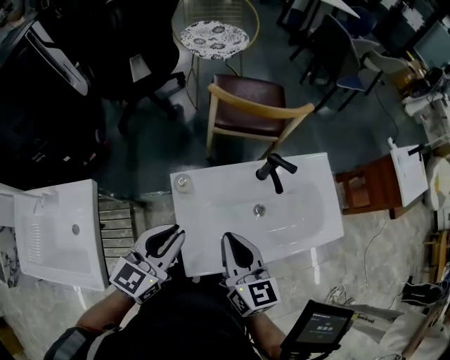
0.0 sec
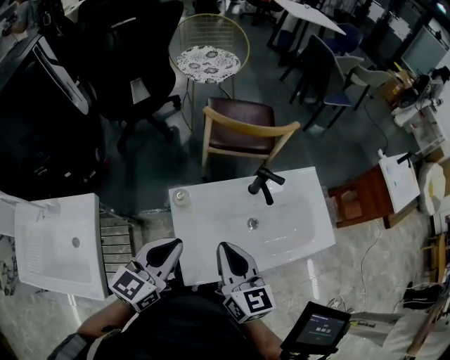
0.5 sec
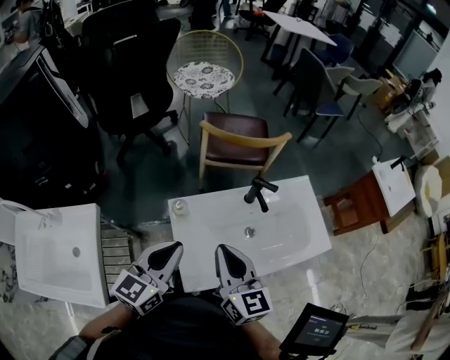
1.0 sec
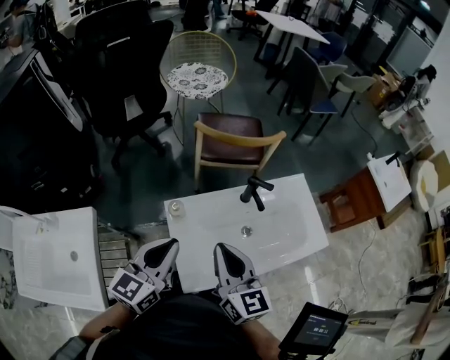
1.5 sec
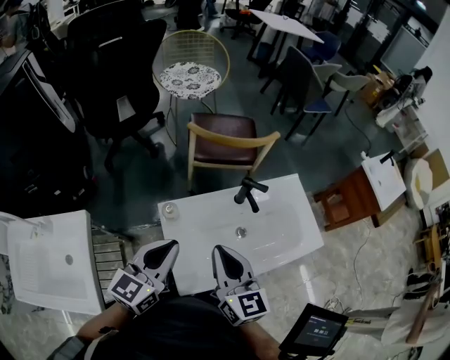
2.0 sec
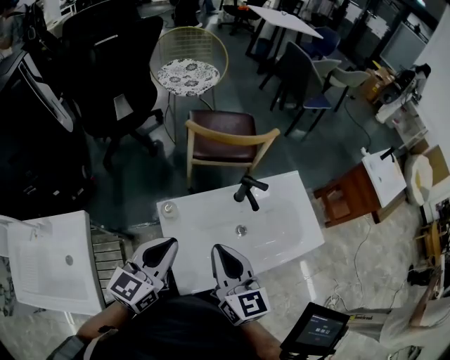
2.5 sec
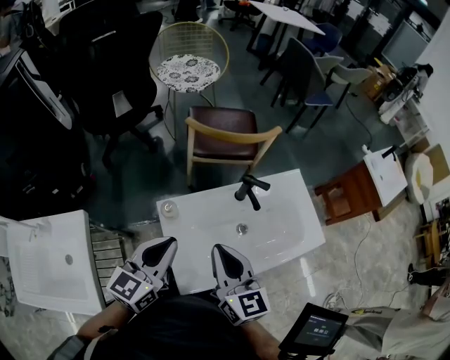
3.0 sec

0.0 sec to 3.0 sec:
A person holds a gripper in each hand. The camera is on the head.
0.0 sec to 1.5 sec: The two grippers go approximately 5 cm upward.
1.5 sec to 3.0 sec: The grippers stay close to where they were, moving slightly.

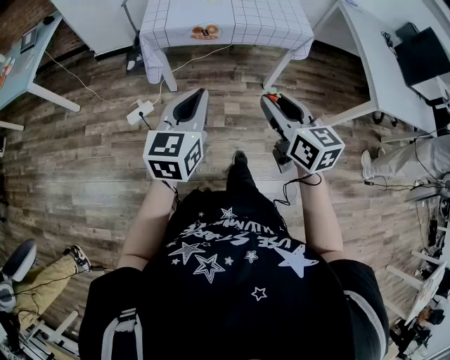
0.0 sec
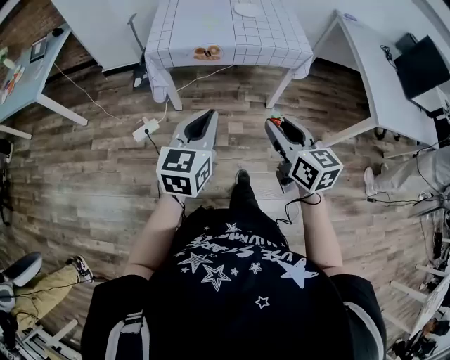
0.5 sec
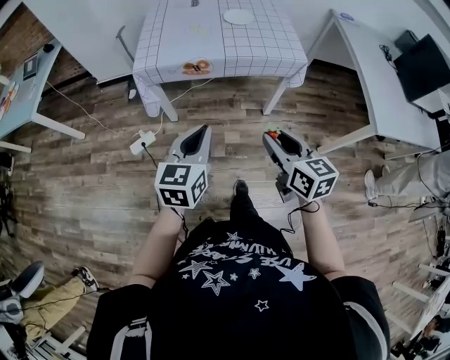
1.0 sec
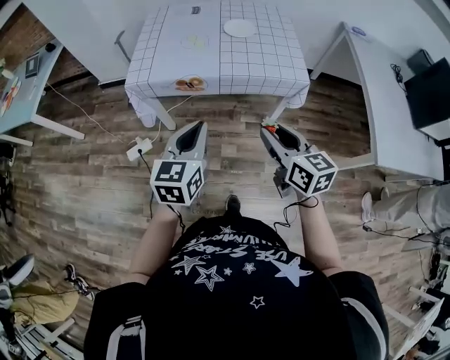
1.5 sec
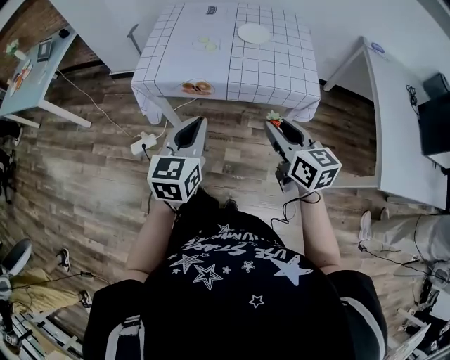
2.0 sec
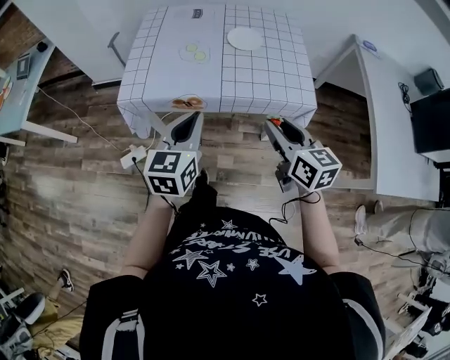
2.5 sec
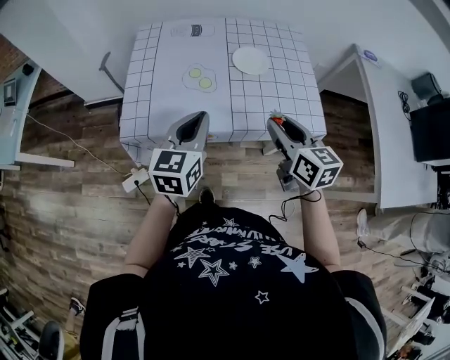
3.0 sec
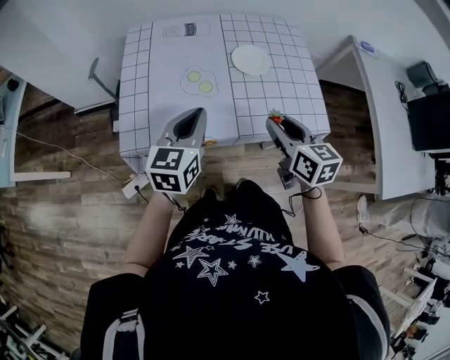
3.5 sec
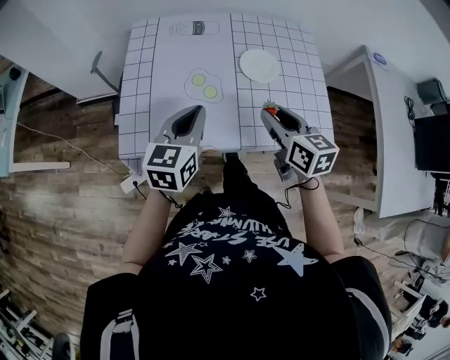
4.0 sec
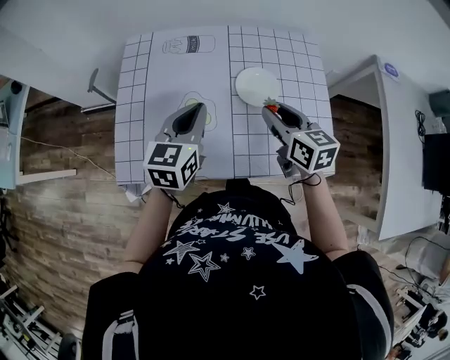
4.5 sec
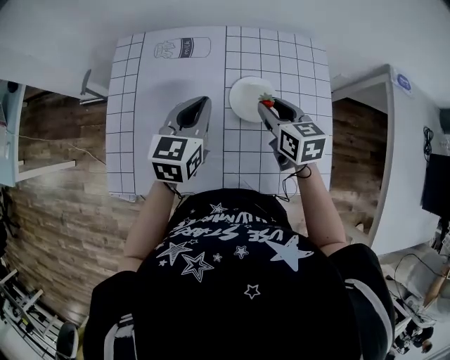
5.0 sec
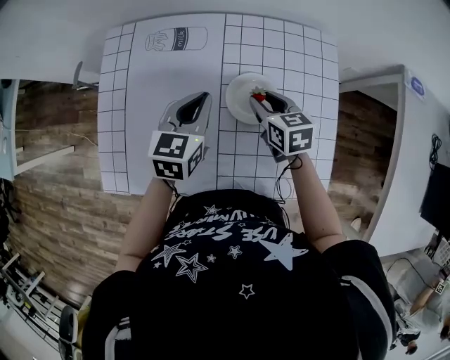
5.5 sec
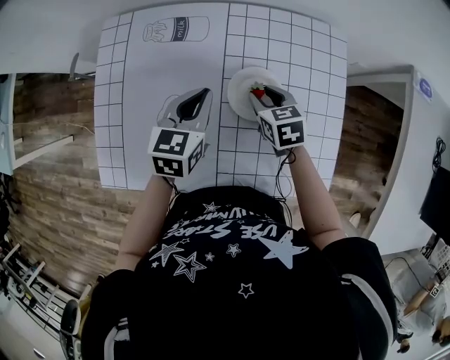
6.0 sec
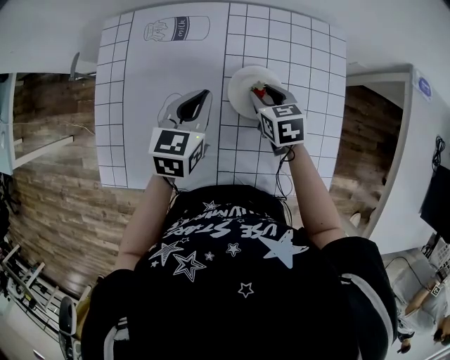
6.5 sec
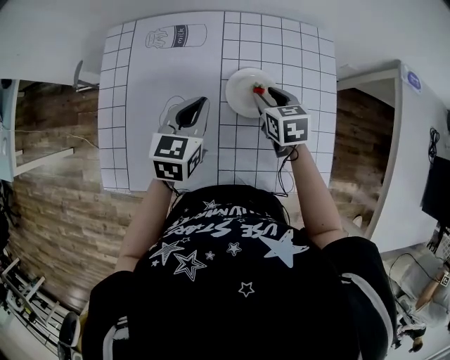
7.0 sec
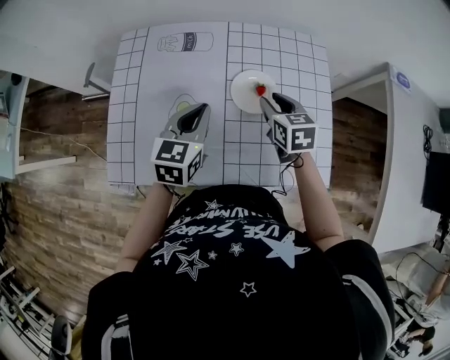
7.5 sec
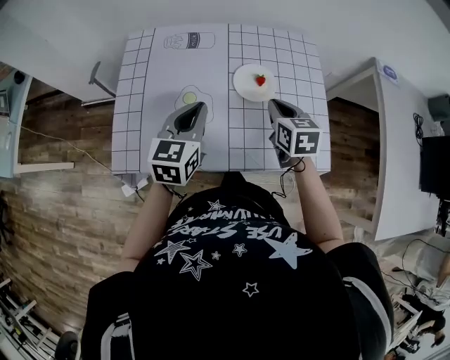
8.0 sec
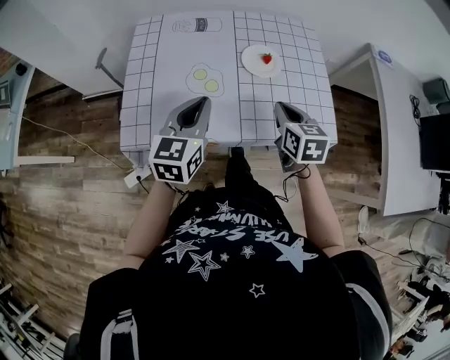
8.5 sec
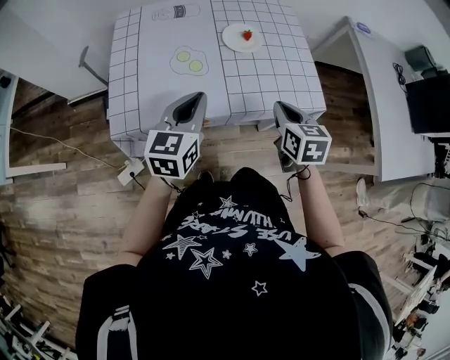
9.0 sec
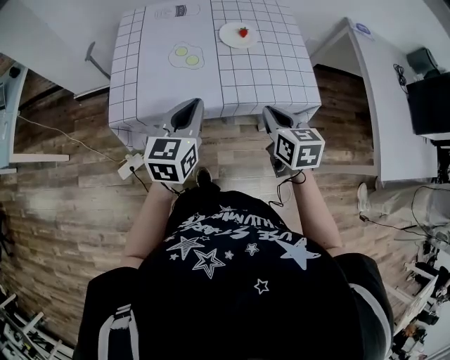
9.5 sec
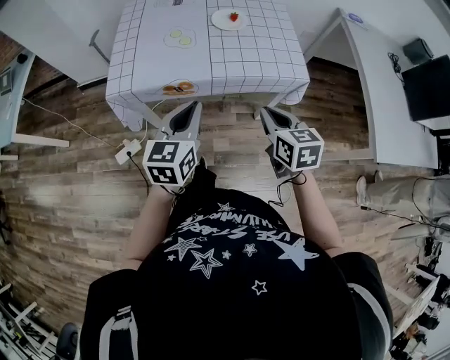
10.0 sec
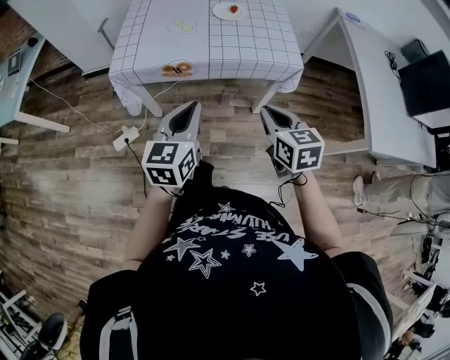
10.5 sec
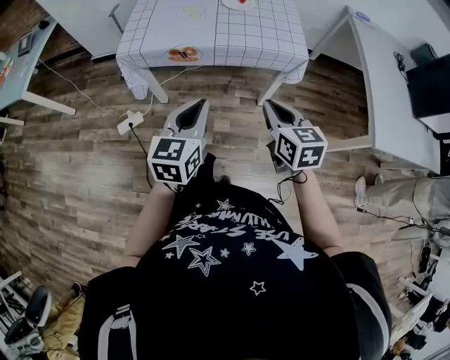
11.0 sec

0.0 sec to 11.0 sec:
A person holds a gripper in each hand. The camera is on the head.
0.0 sec to 2.0 sec: The grippers both shift forward and to the right by roughly 25 cm.
2.0 sec to 3.5 sec: The grippers both shift forward by some 25 cm.
3.5 sec to 5.5 sec: The right gripper goes about 35 cm forward and downward, and rotates approximately 20 degrees, while the left gripper moves forward, roughly 25 cm.
5.5 sec to 7.5 sec: The right gripper changes place by some 5 cm; the left gripper travels backward by about 5 cm.
7.5 sec to 9.0 sec: Both grippers travel together backward, about 25 cm. The right gripper closes.
9.0 sec to 11.0 sec: Both grippers move backward, approximately 30 cm.

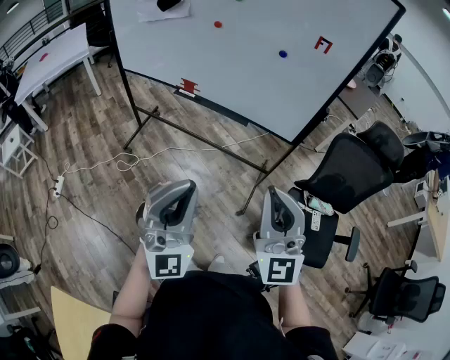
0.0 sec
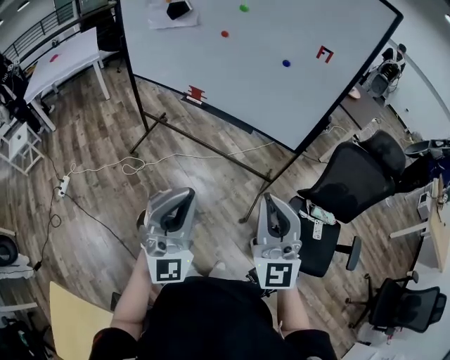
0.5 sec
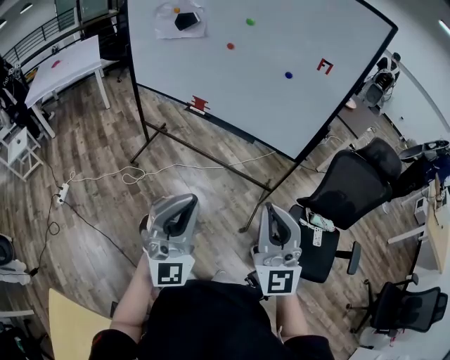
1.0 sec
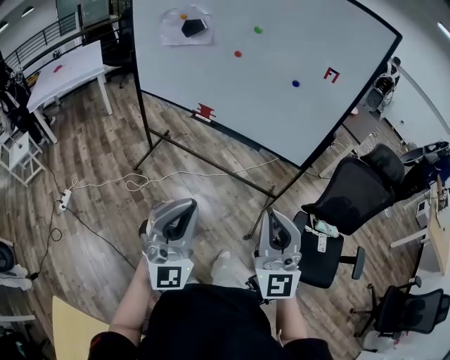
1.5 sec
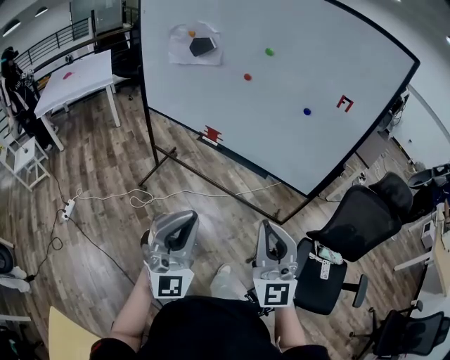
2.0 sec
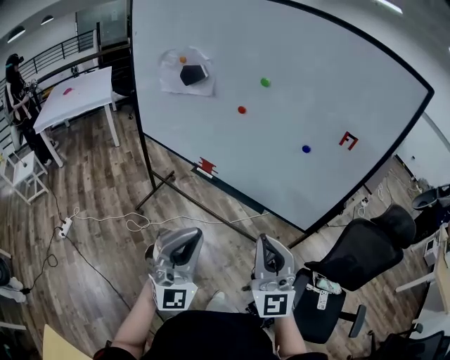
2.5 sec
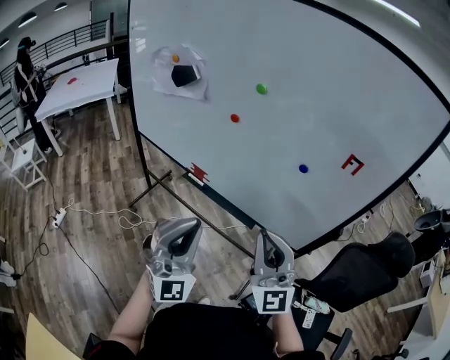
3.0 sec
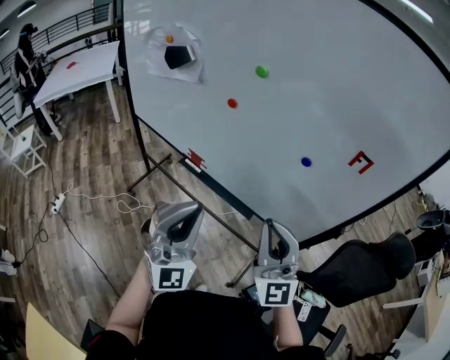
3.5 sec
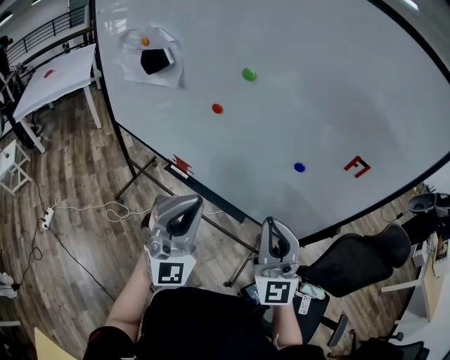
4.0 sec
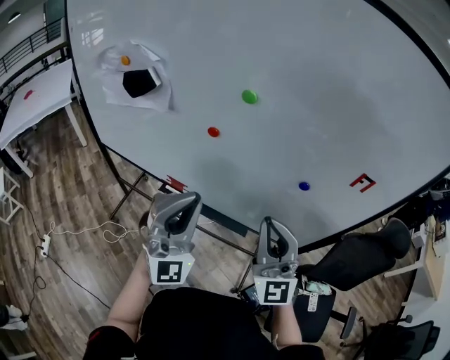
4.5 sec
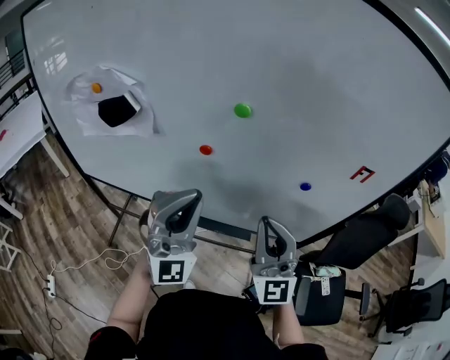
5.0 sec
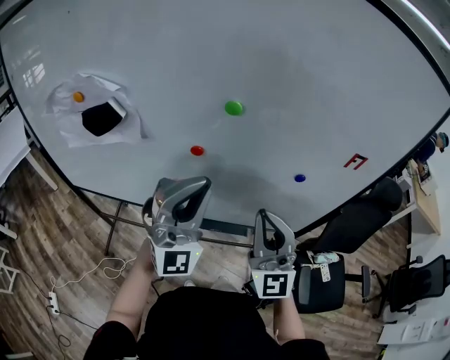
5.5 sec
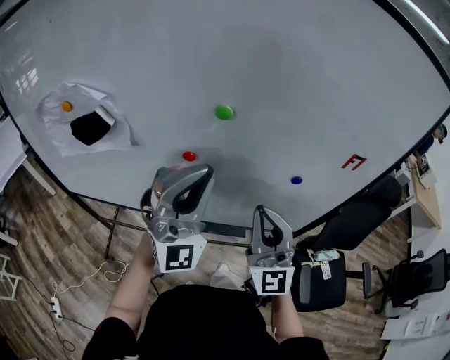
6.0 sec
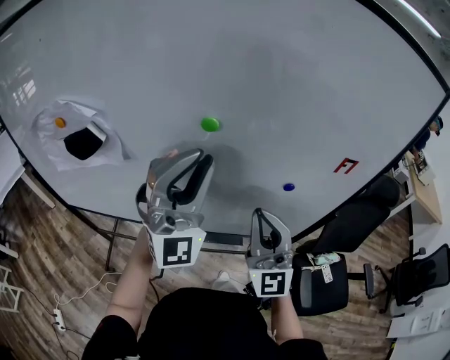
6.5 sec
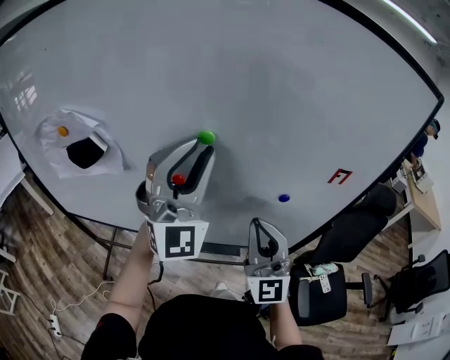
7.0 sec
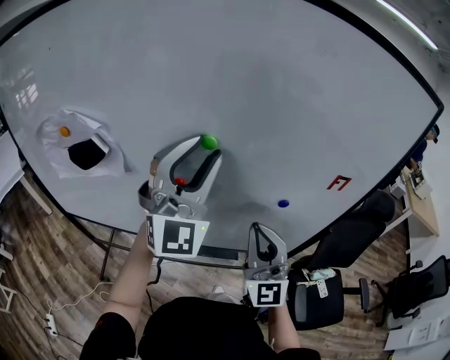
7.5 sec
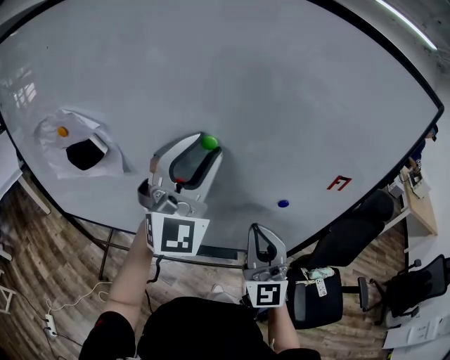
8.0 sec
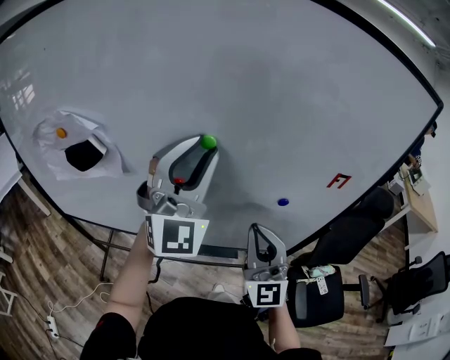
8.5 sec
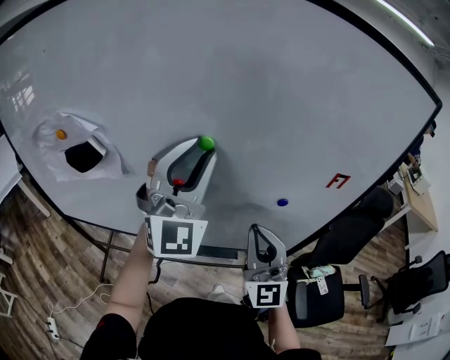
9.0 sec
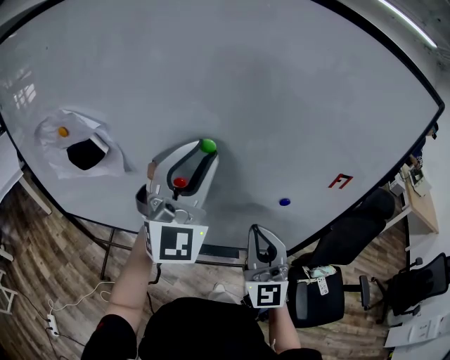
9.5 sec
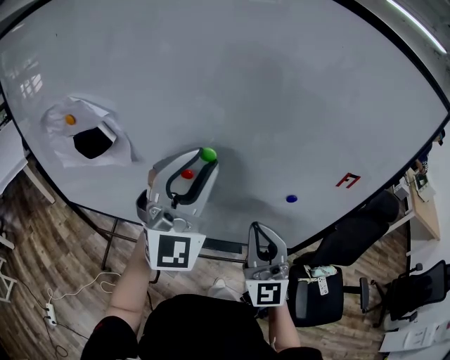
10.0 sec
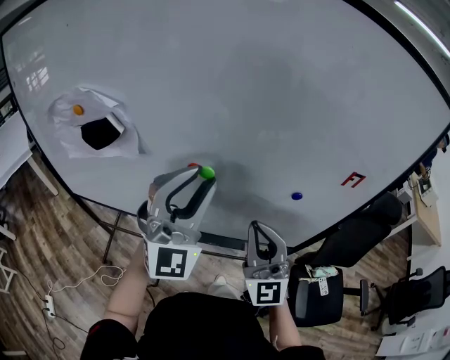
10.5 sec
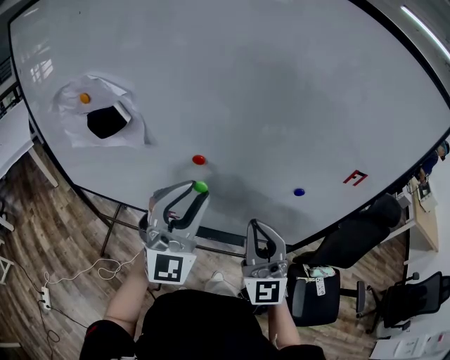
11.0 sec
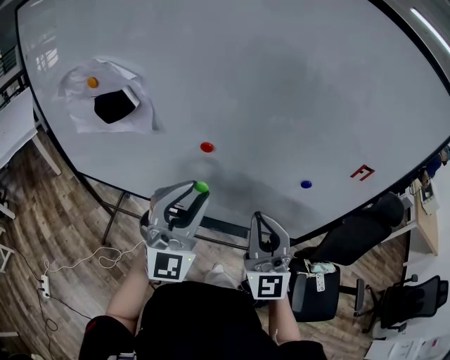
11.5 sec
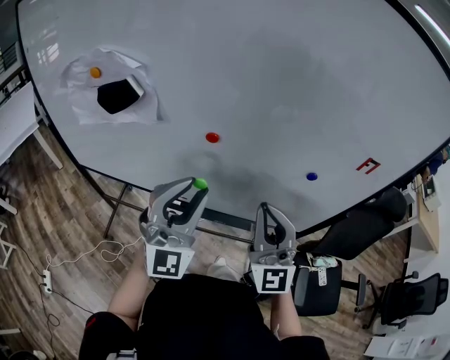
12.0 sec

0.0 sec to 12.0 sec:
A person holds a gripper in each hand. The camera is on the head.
0.0 sec to 2.0 sec: The two grippers go approximately 5 cm to the left.
2.0 sec to 4.0 sec: The right gripper goes about 30 cm forward and to the right. Meanwhile the left gripper travels forward by about 30 cm.
4.0 sec to 6.0 sec: The left gripper goes roughly 15 cm forward, and rotates about 20 degrees. The right gripper is displaced forward and to the left by approximately 15 cm, and rotates approximately 20 degrees.
6.0 sec to 8.0 sec: The left gripper shifts some 10 cm upward and forward, and opens its fingers.
8.0 sec to 10.0 sec: There are only small adjustments of the grippers.
10.0 sec to 12.0 sec: The left gripper heads downward and backward, covering roughly 15 cm.

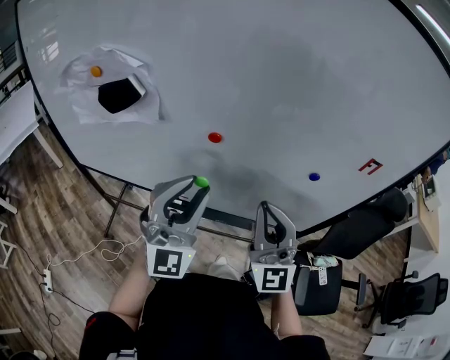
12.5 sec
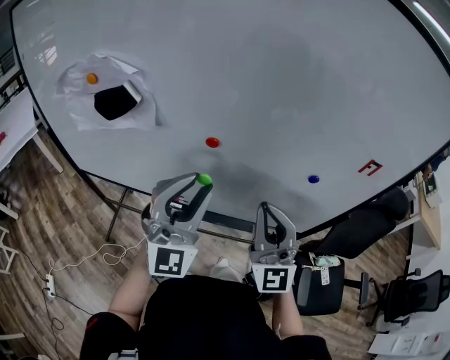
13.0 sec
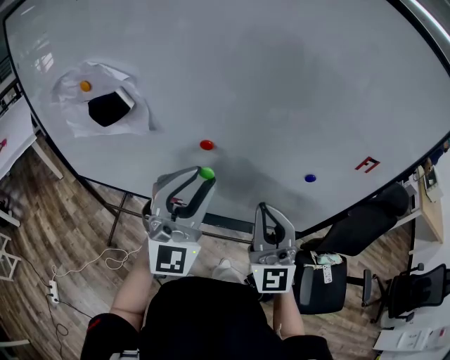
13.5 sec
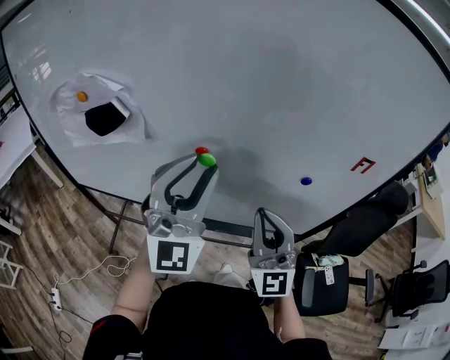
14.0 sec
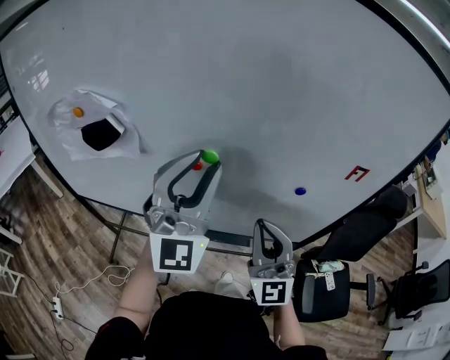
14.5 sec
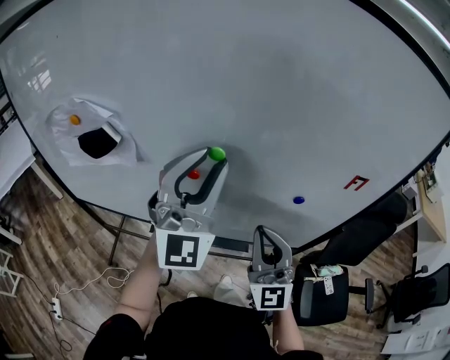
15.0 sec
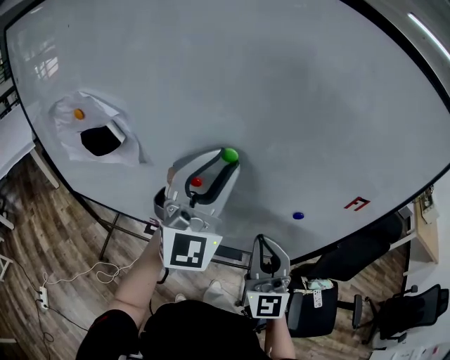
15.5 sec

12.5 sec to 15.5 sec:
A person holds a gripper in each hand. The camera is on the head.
12.5 sec to 14.0 sec: The left gripper travels upward by about 10 cm.
14.0 sec to 15.5 sec: The left gripper goes roughly 5 cm forward.
